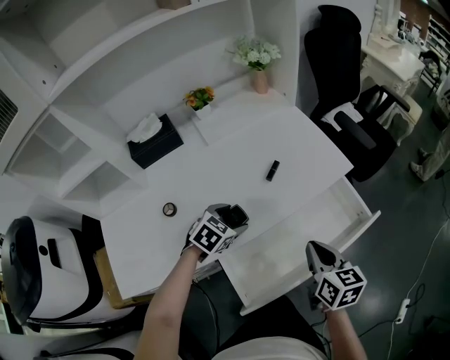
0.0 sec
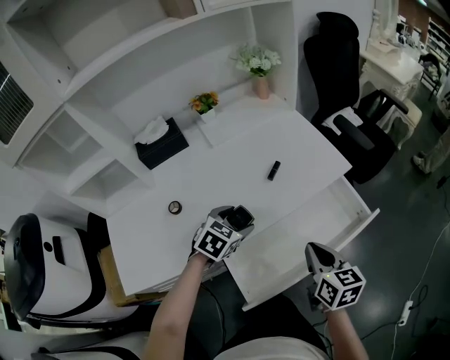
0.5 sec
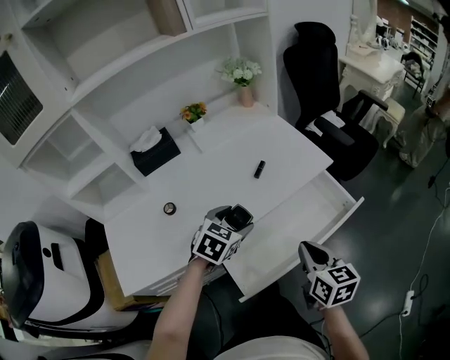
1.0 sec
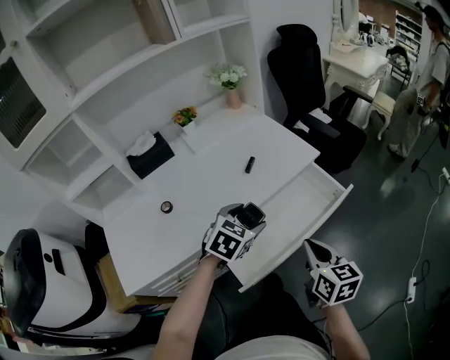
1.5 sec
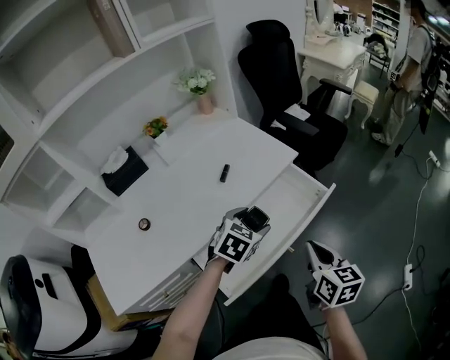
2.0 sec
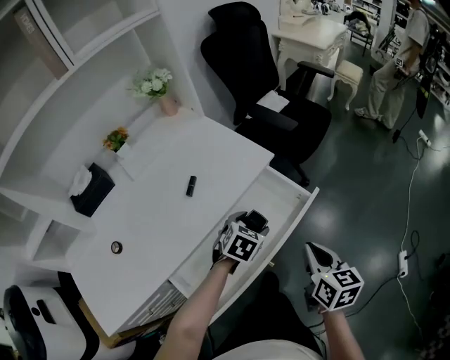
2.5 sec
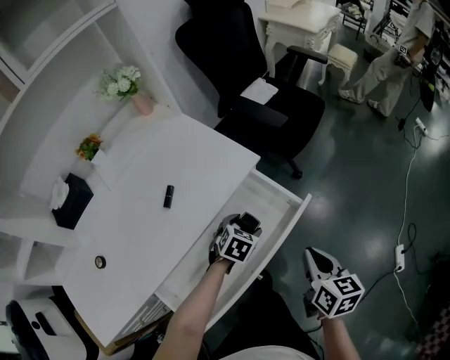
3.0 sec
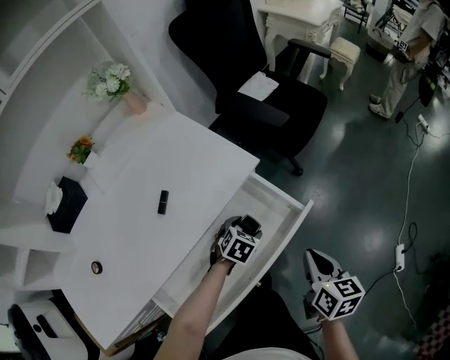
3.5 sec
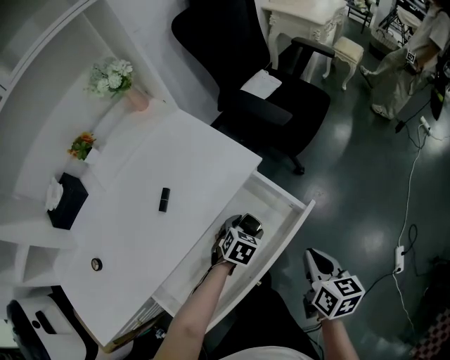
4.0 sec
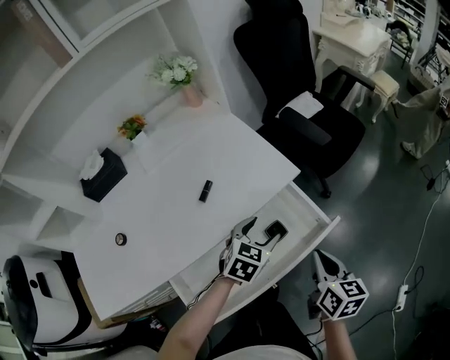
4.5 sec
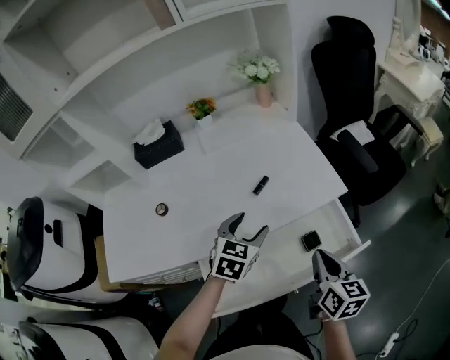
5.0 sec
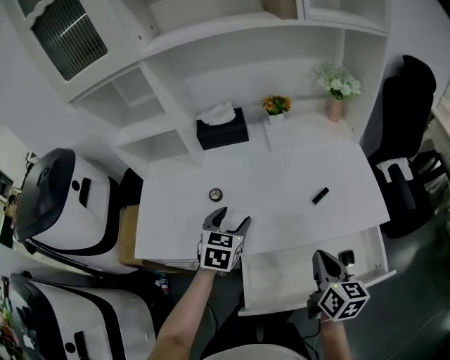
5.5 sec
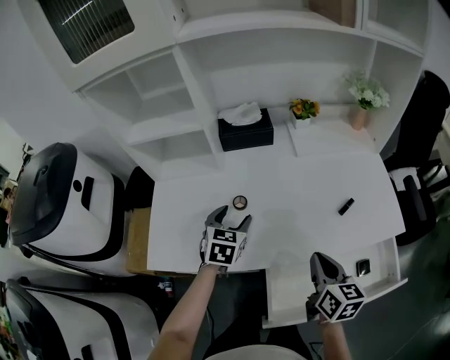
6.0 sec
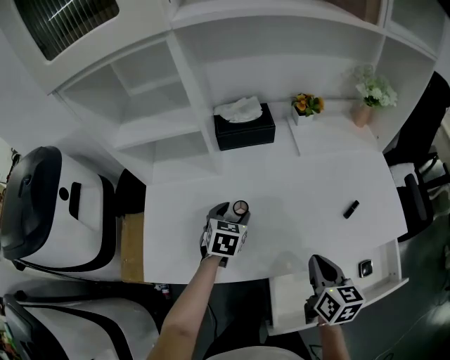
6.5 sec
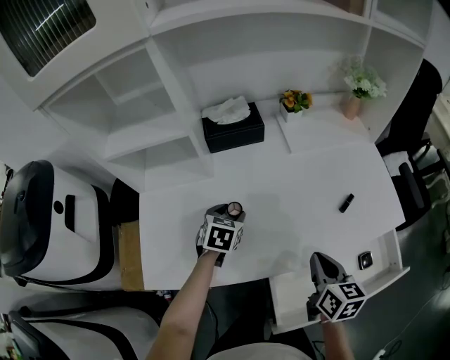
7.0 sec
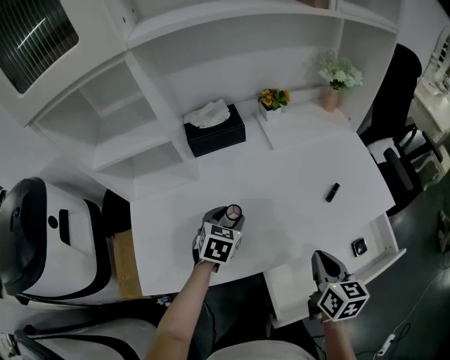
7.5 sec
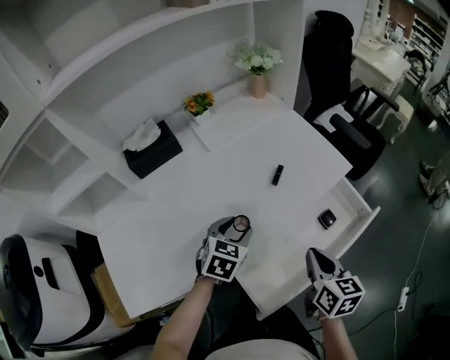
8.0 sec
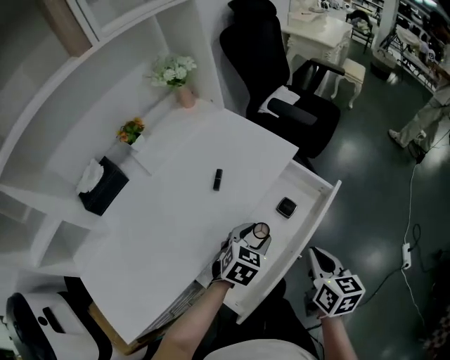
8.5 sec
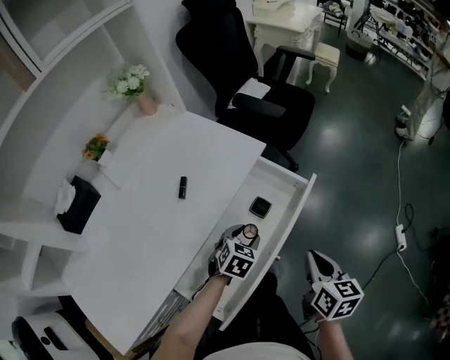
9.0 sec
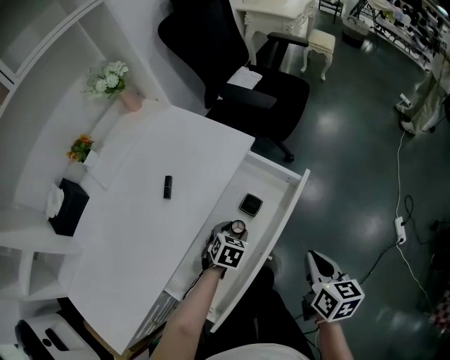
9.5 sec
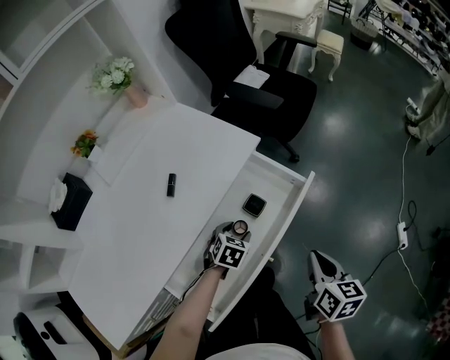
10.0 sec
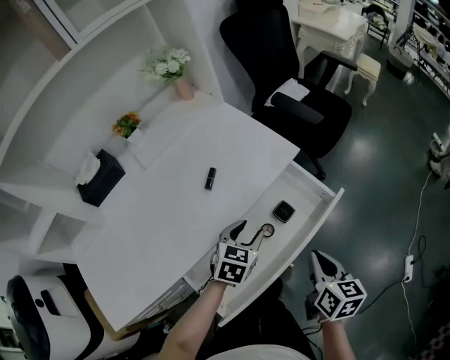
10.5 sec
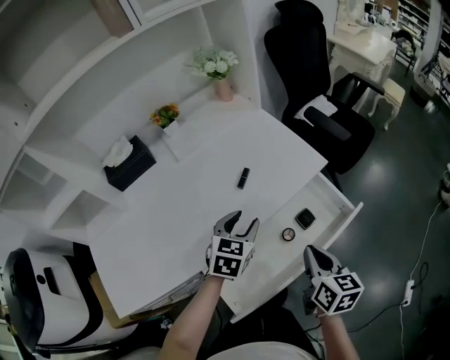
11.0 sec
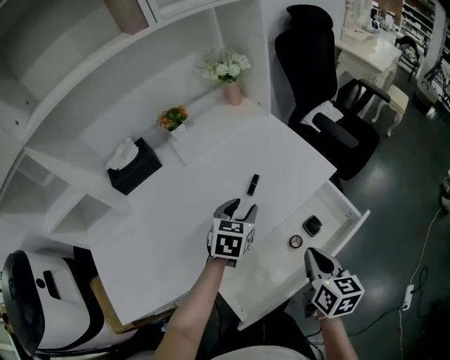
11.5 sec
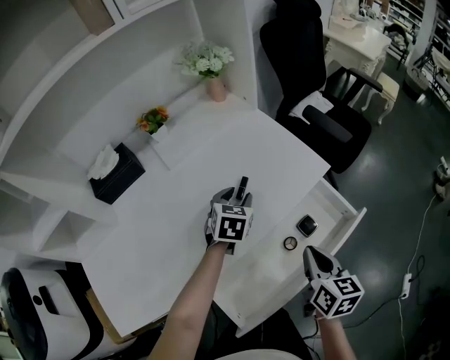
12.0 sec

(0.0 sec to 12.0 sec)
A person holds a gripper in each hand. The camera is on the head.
0.0 sec - 2.0 sec: The right gripper is displaced to the right and backward by approximately 15 cm. Meanwhile the left gripper moves to the right, some 20 cm.
2.0 sec - 4.0 sec: The right gripper heads forward, to the right and downward, covering some 20 cm. The left gripper moves downward, forward and to the right, about 25 cm.
4.0 sec - 6.0 sec: The pair of grippers is taken about 50 cm. The left gripper swivels about 60 degrees. The right gripper turns by approximately 40 degrees.
6.0 sec - 8.0 sec: The left gripper shifts by approximately 20 cm, and changes its angle by about 40 degrees, while the right gripper ends up some 15 cm from where it was, and rotates approximately 30 degrees.
8.0 sec - 10.0 sec: The right gripper shifts by some 25 cm, and turns by roughly 30 degrees. The left gripper ends up about 30 cm from where it was, and swivels roughly 30 degrees.
10.0 sec - 12.0 sec: The right gripper goes about 20 cm to the left and forward, while the left gripper travels to the left, upward and forward by some 30 cm, and swivels approximately 30 degrees.

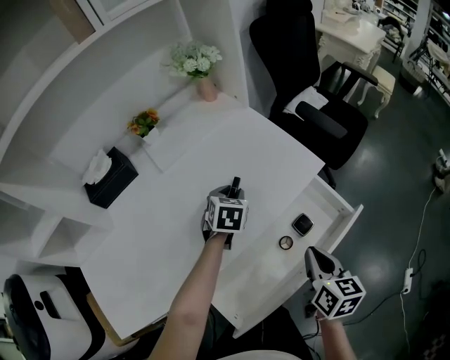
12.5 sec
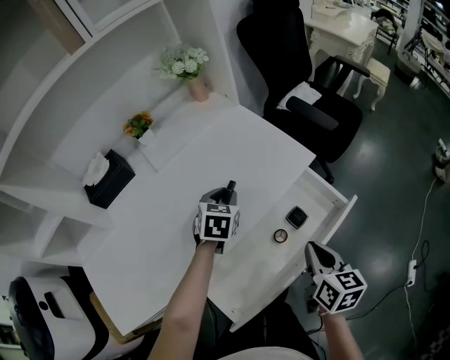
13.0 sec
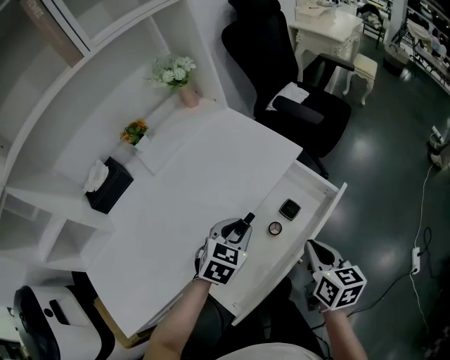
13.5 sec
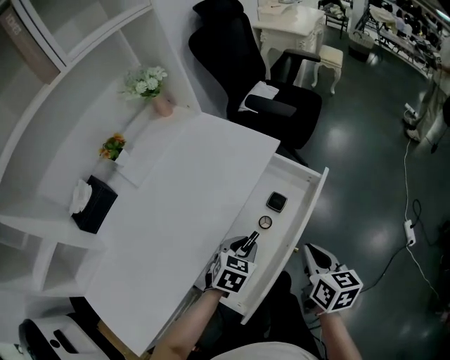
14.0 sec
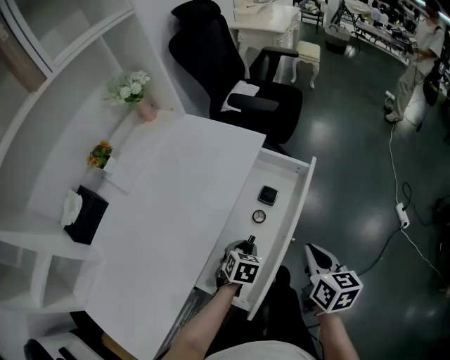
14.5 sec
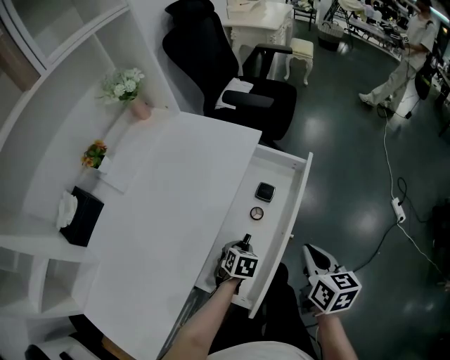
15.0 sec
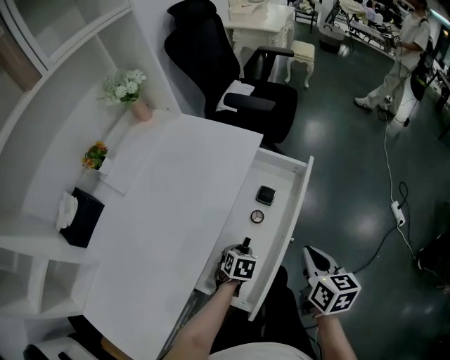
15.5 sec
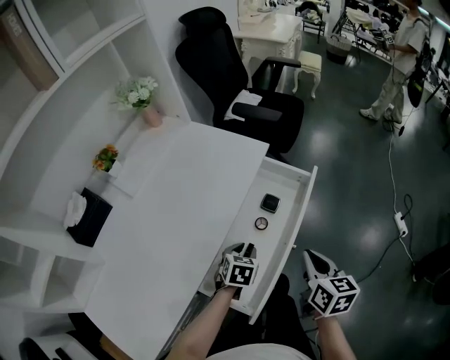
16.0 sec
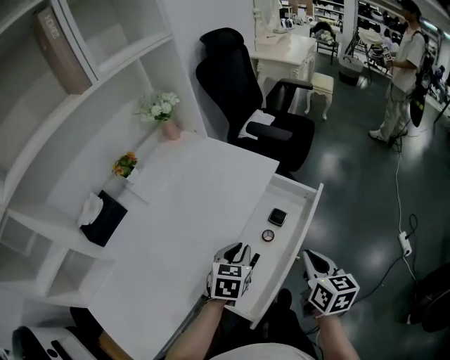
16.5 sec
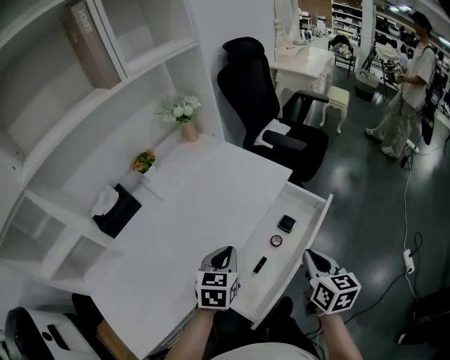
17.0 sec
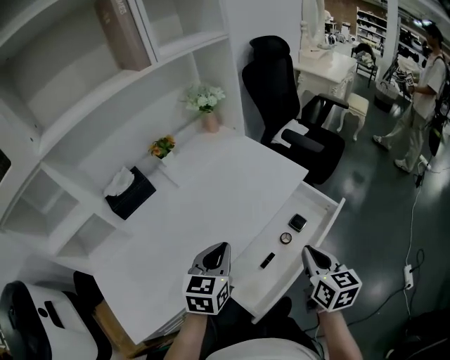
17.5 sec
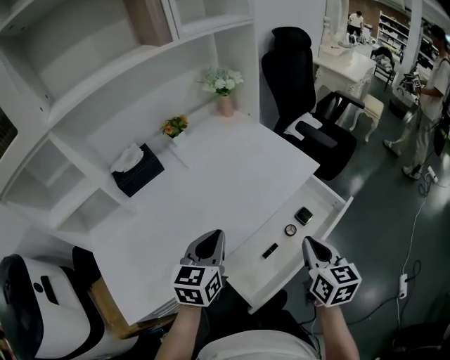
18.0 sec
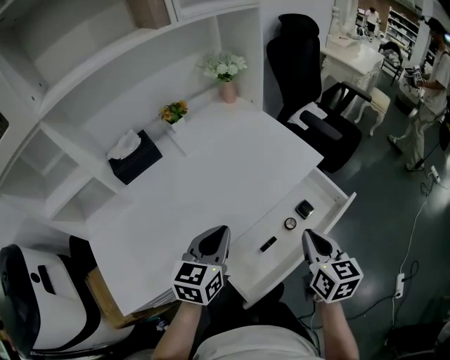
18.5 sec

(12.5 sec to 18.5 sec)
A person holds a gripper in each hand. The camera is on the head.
12.5 sec - 14.5 sec: The left gripper ends up approximately 30 cm from where it was, and changes its angle by about 30 degrees, while the right gripper changes place by approximately 15 cm, and swivels some 20 degrees.
14.5 sec - 16.5 sec: The left gripper moves upward, some 15 cm, and changes its angle by about 20 degrees; the right gripper ends up some 5 cm from where it was.
16.5 sec - 18.5 sec: The right gripper travels to the left by approximately 5 cm, and turns by some 20 degrees. Meanwhile the left gripper shifts some 15 cm to the left and upward, and turns by about 30 degrees.

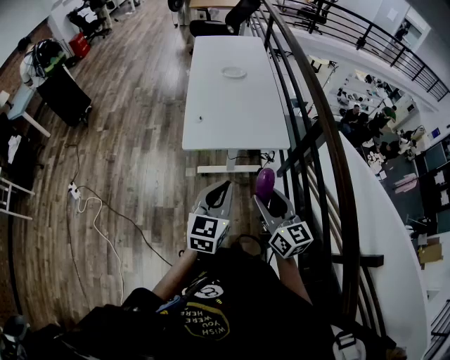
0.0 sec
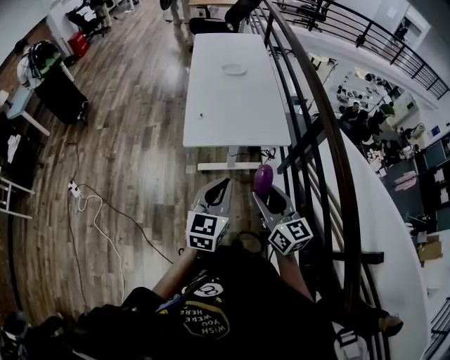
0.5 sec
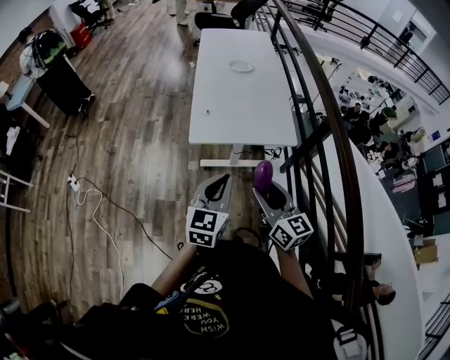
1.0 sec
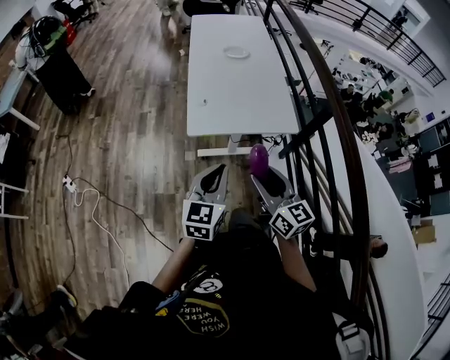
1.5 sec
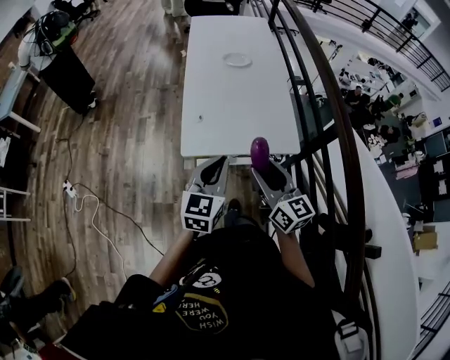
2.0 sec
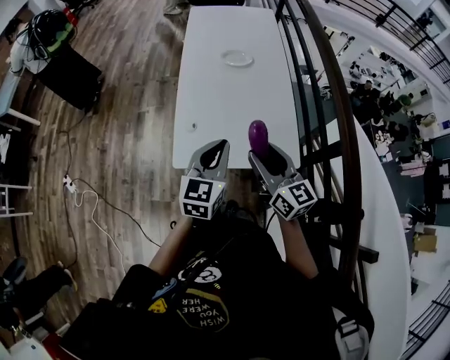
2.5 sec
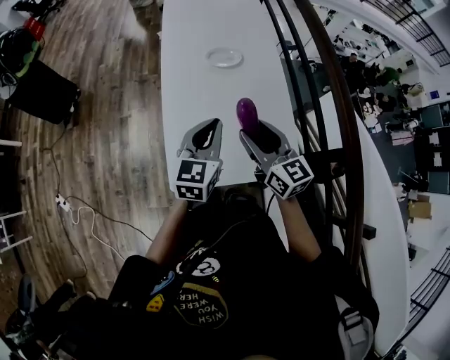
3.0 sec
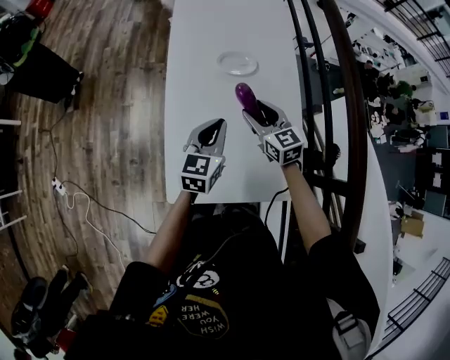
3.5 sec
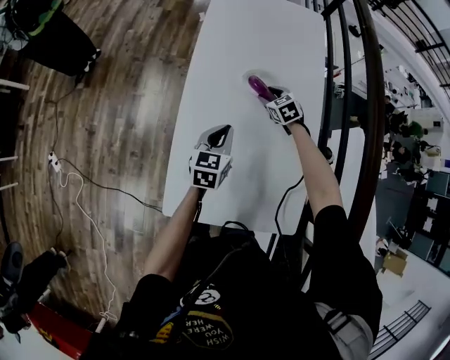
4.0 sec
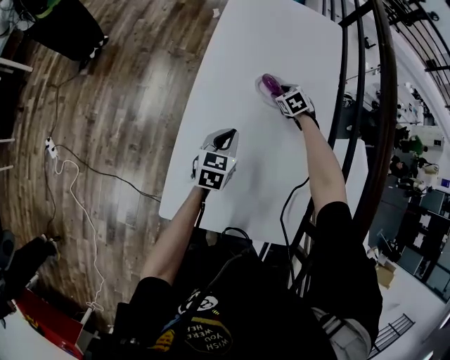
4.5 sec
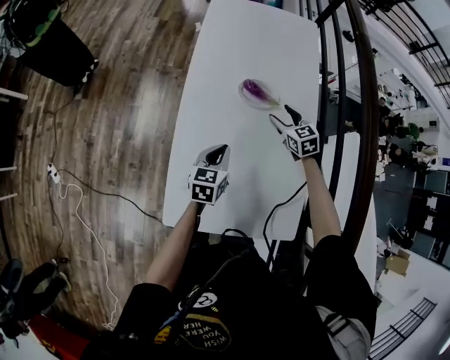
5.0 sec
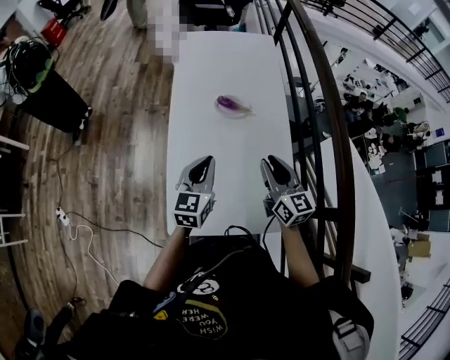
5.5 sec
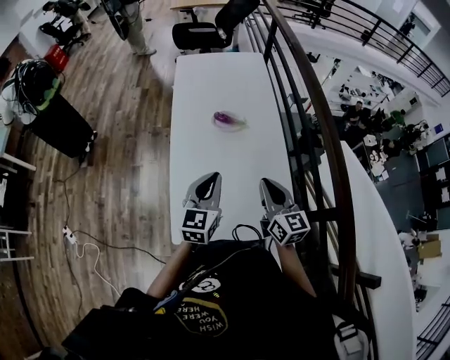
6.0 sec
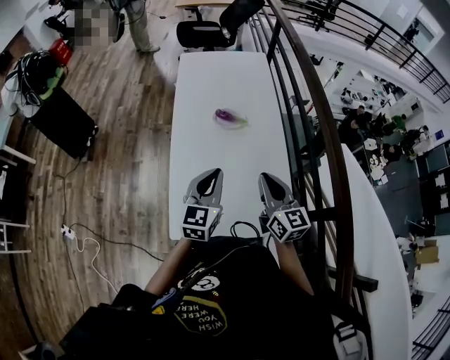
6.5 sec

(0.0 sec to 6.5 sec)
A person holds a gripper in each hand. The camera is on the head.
0.0 sec - 2.0 sec: Both grippers move forward, roughly 20 cm.
2.0 sec - 4.5 sec: The pair of grippers is taken forward, approximately 60 cm. The left gripper heads downward, covering roughly 25 cm, and rotates roughly 20 degrees; the right gripper is displaced downward by some 40 cm, and tilts its fingers about 60 degrees downward.
4.5 sec - 6.5 sec: The right gripper heads backward and upward, covering roughly 50 cm, tips its fingers upward by approximately 60 degrees, and closes its fingers. The left gripper goes some 30 cm upward and backward, and changes its angle by roughly 30 degrees.

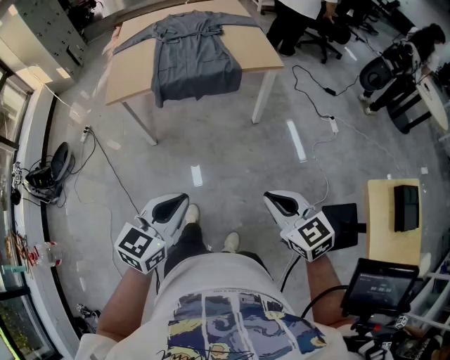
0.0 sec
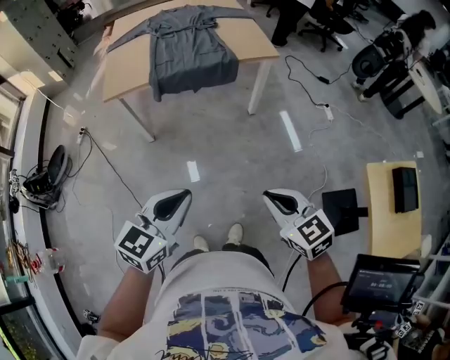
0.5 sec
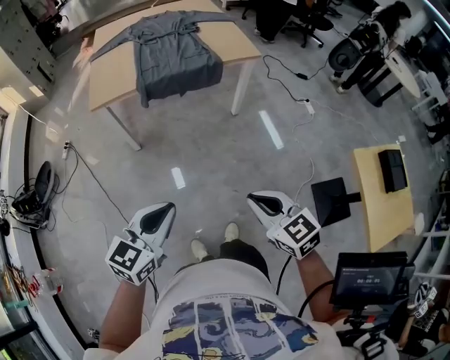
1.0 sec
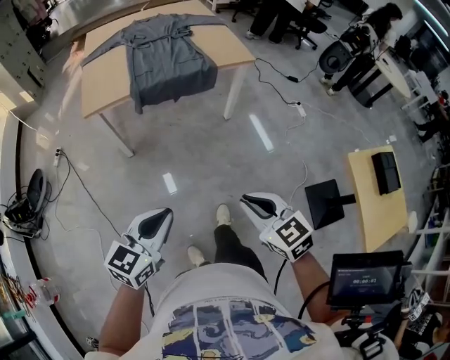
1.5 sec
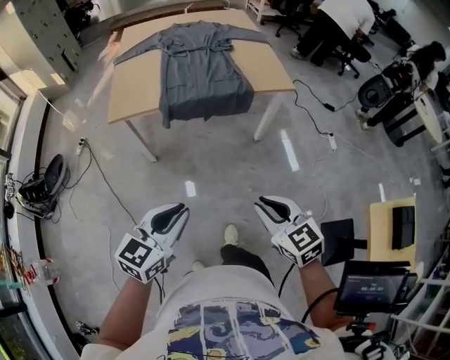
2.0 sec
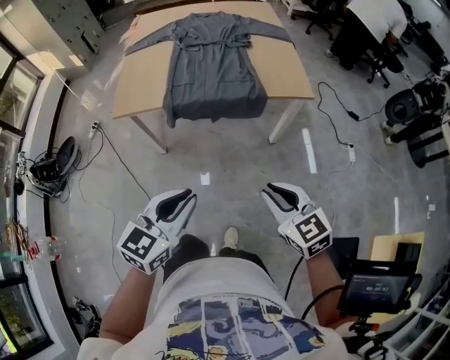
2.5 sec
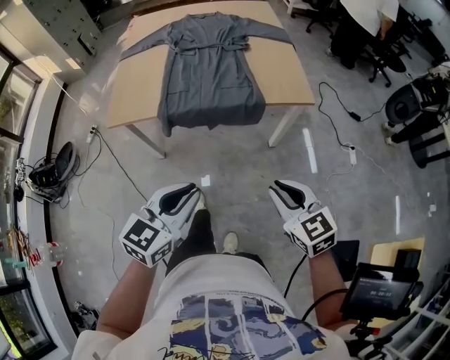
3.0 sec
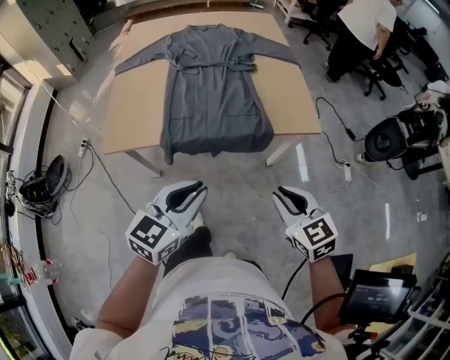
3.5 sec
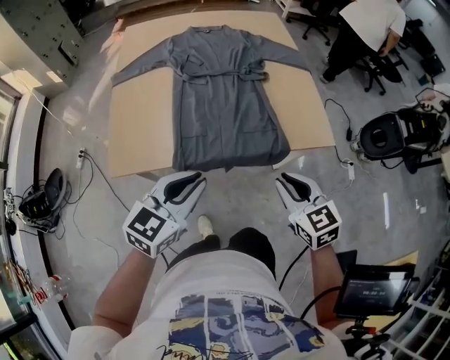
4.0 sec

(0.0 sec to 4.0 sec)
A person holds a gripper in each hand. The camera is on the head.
0.0 sec - 2.0 sec: Both grippers travel together forward and to the left, roughly 15 cm.
2.0 sec - 4.0 sec: Both grippers travel together forward, roughly 40 cm.
